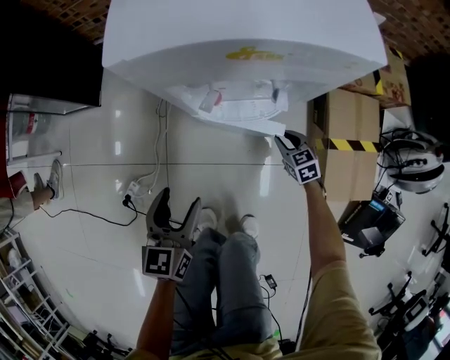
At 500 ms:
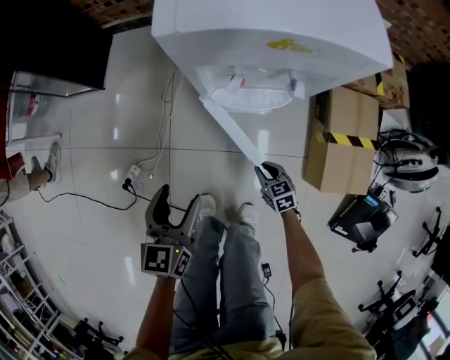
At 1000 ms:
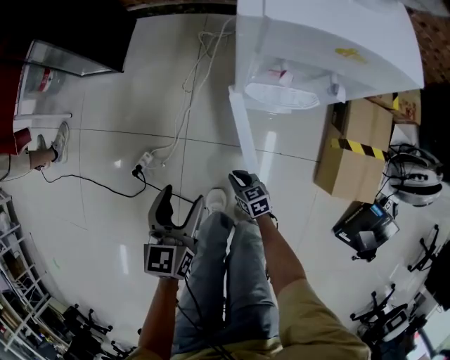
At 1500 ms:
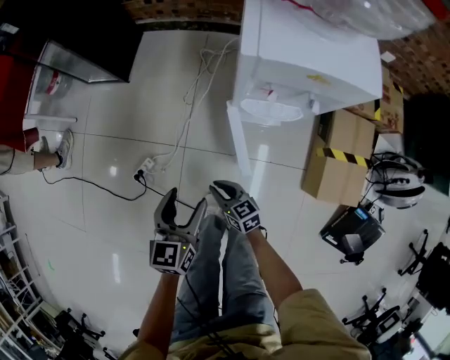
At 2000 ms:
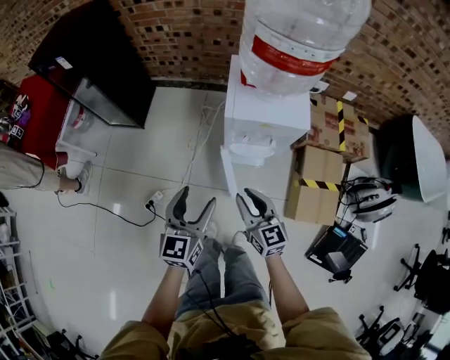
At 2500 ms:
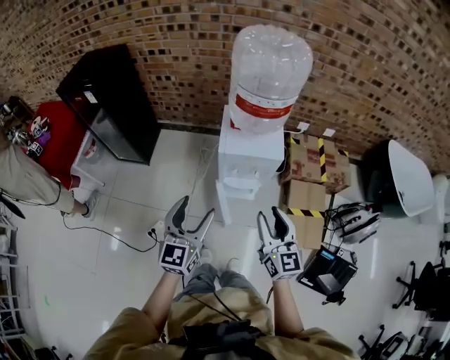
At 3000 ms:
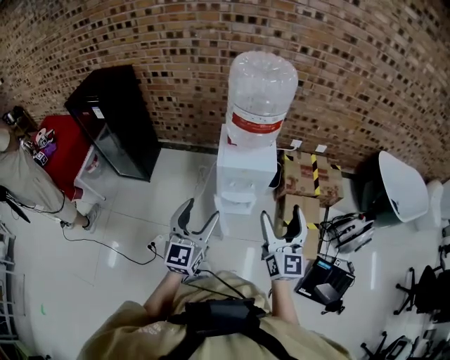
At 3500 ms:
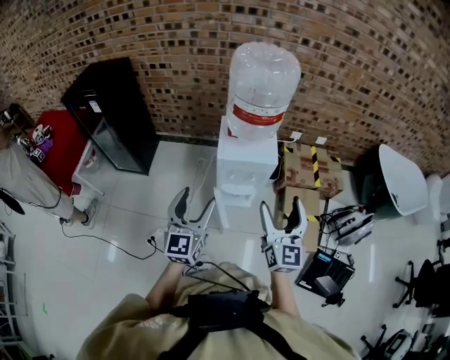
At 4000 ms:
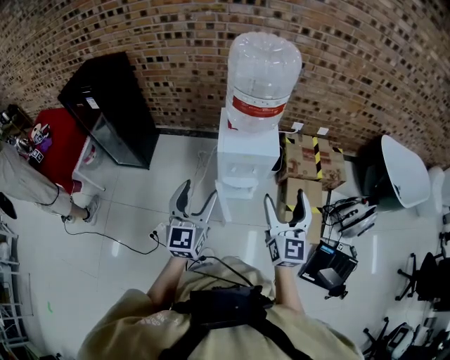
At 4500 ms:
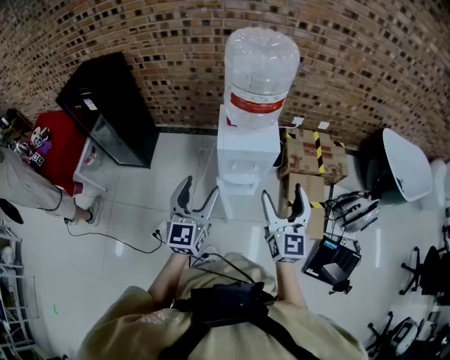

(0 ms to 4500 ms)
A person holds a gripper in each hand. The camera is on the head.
0 ms - 2000 ms: The right gripper is displaced upward and to the left by some 50 cm, and points its fingers roughly 30 degrees further upward, while the left gripper shifts approximately 30 cm upward.
2000 ms - 4500 ms: The right gripper travels upward and to the right by some 30 cm, turns by about 40 degrees, and opens. Meanwhile the left gripper moves upward, approximately 20 cm.

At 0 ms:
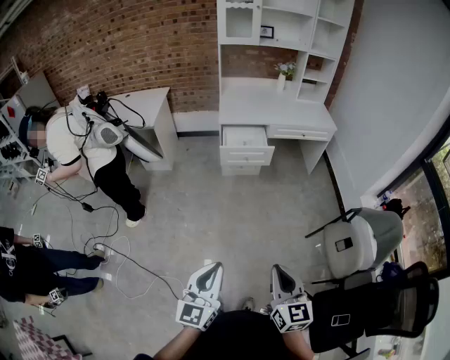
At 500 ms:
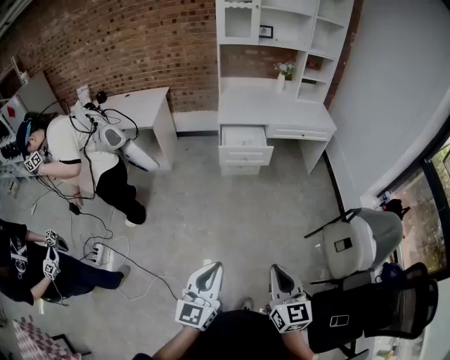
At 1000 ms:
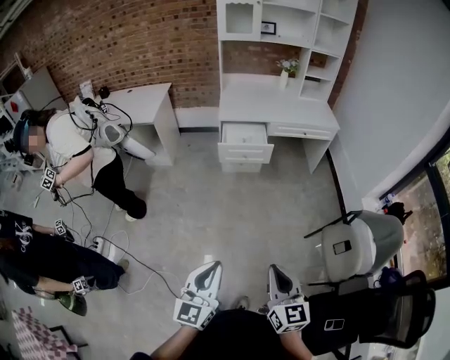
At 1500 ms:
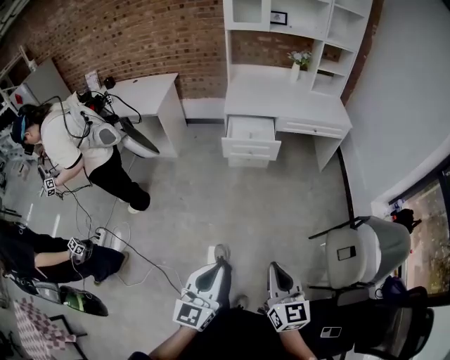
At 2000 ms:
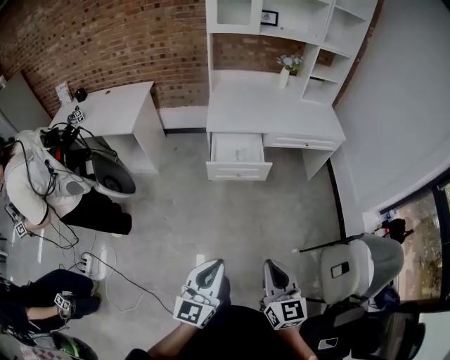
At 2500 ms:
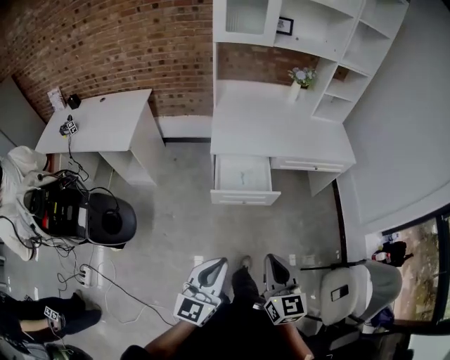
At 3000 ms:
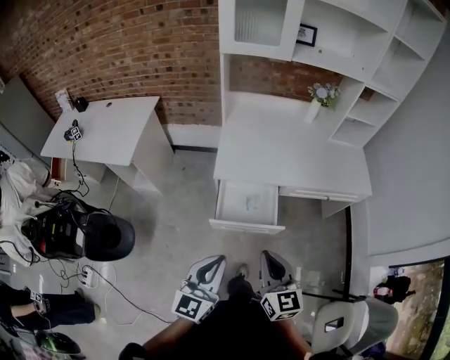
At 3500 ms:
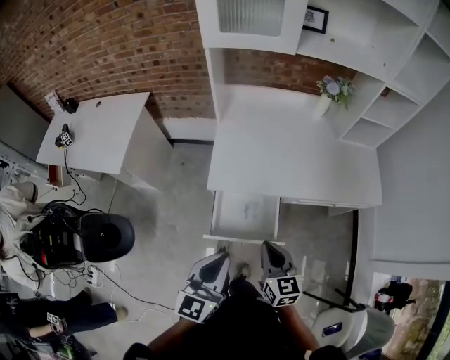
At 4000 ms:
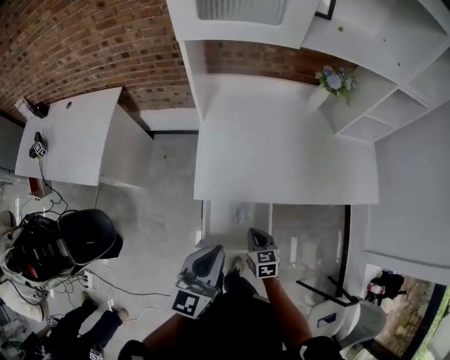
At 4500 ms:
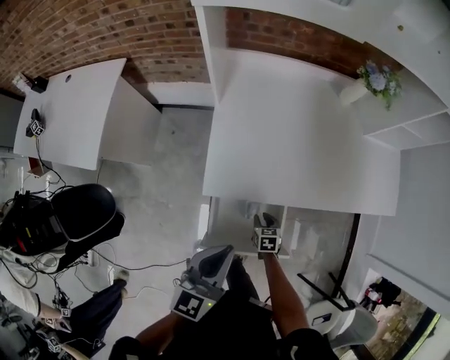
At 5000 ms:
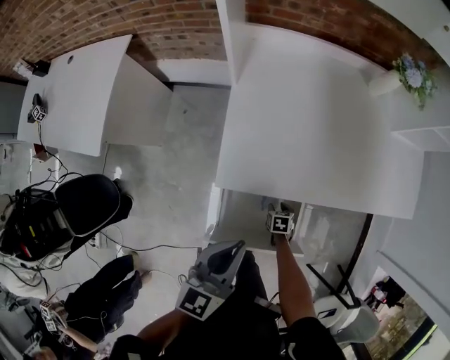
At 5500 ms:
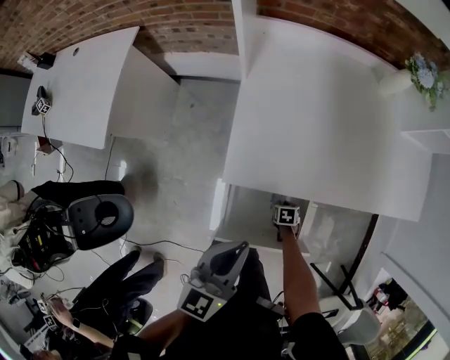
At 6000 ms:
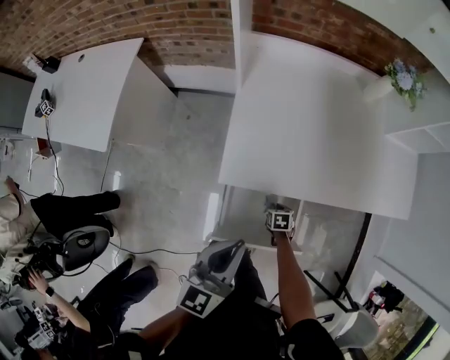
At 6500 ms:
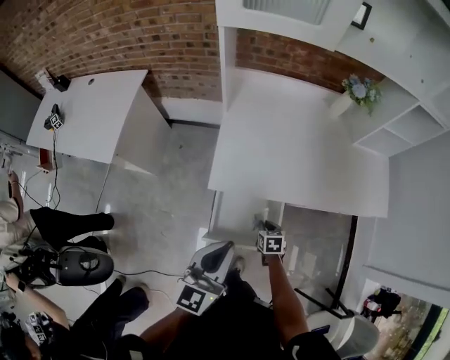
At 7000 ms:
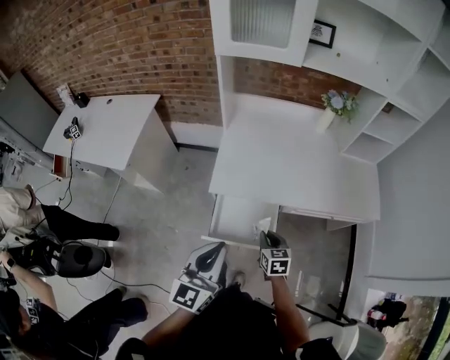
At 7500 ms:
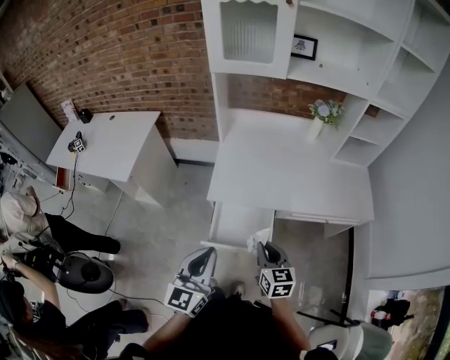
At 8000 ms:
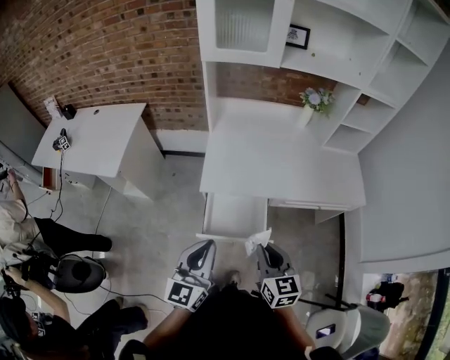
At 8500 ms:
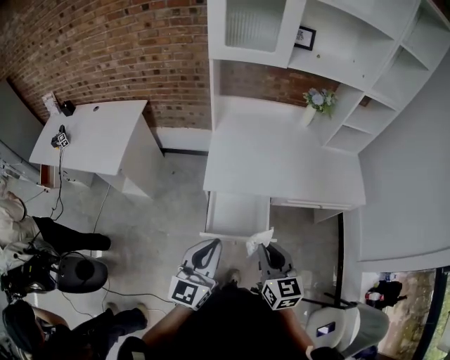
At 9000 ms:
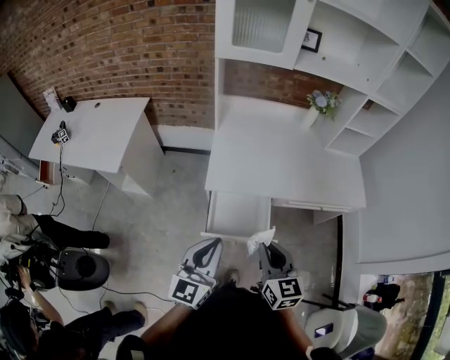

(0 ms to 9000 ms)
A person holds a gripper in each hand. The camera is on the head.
0 ms - 2000 ms: Both grippers travel together forward, some 30 cm.
2000 ms - 4500 ms: The pair of grippers is taken forward, some 80 cm. The right gripper travels downward by some 50 cm, tips its fingers downward by about 50 degrees, and opens its fingers.
4500 ms - 7000 ms: The right gripper is displaced upward by some 25 cm, and rotates some 20 degrees, while the left gripper shifts by some 20 cm.
7000 ms - 9000 ms: The right gripper shifts roughly 25 cm upward and backward, and turns by approximately 20 degrees. The left gripper ends up roughly 5 cm from where it was.

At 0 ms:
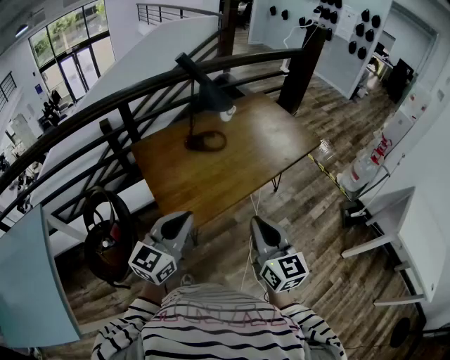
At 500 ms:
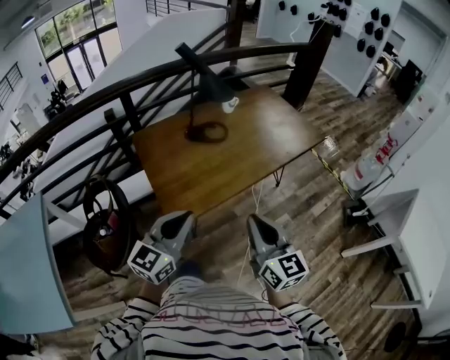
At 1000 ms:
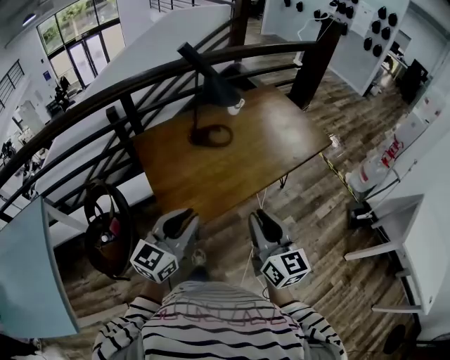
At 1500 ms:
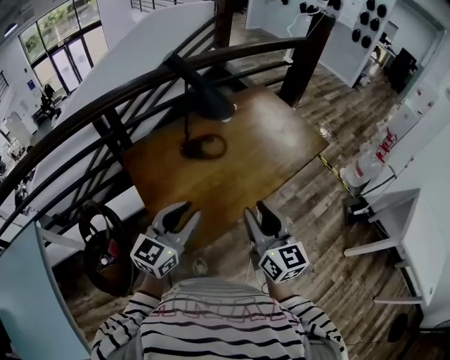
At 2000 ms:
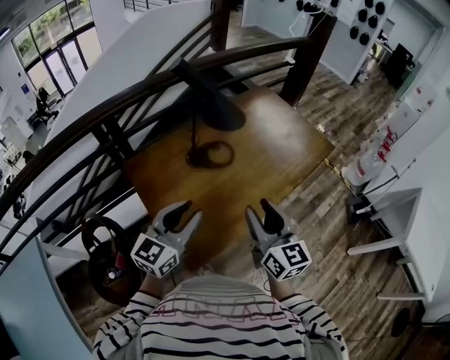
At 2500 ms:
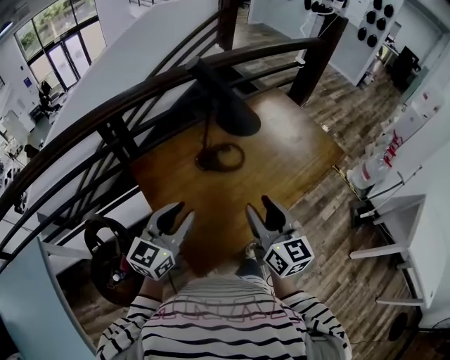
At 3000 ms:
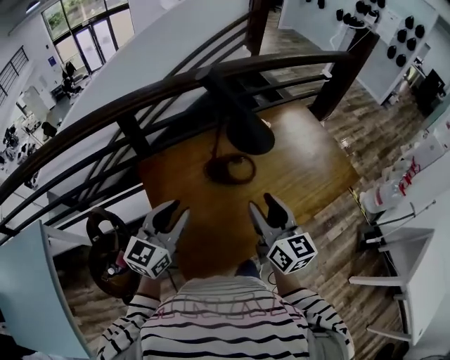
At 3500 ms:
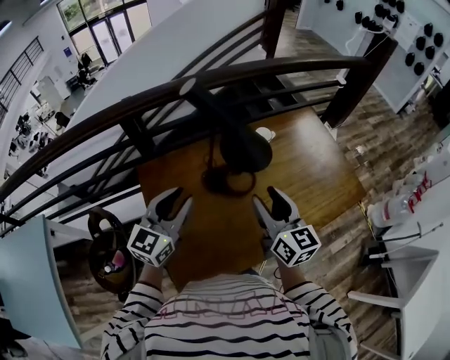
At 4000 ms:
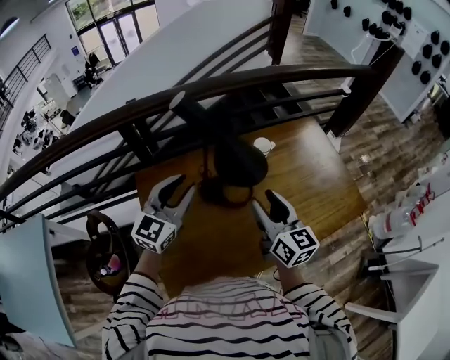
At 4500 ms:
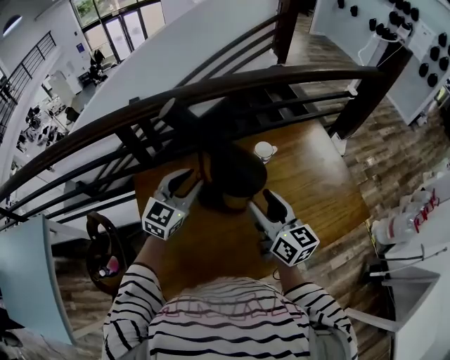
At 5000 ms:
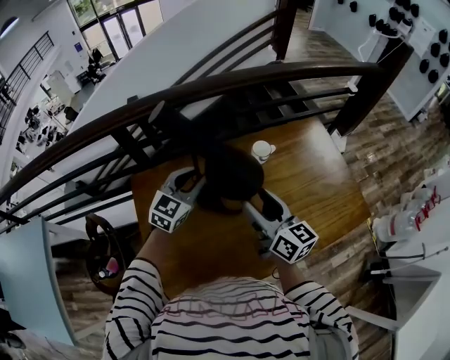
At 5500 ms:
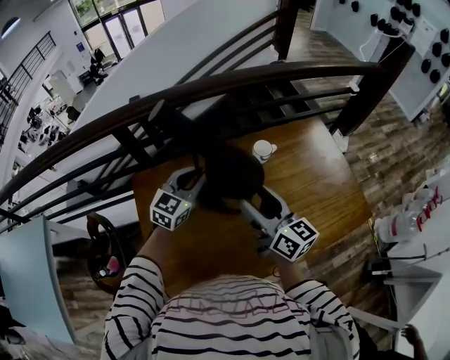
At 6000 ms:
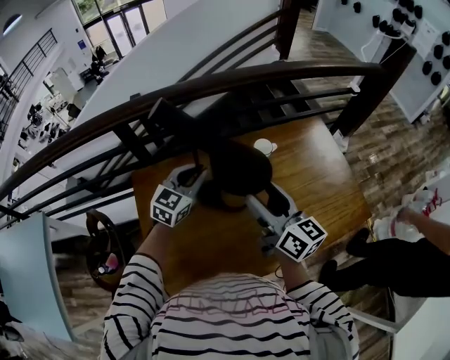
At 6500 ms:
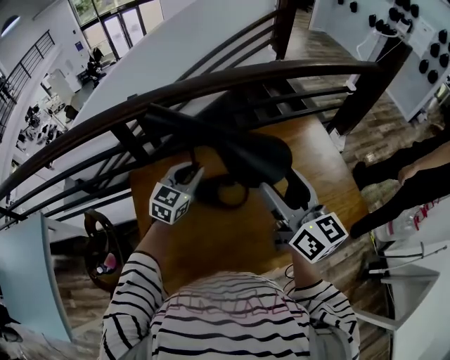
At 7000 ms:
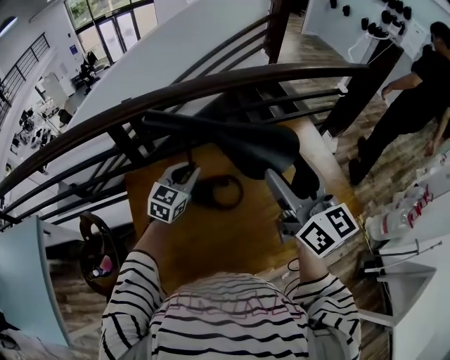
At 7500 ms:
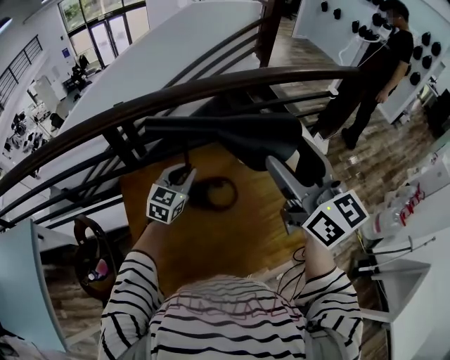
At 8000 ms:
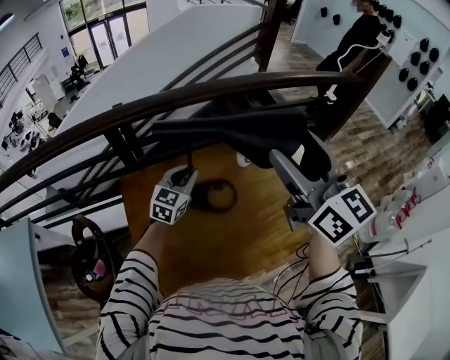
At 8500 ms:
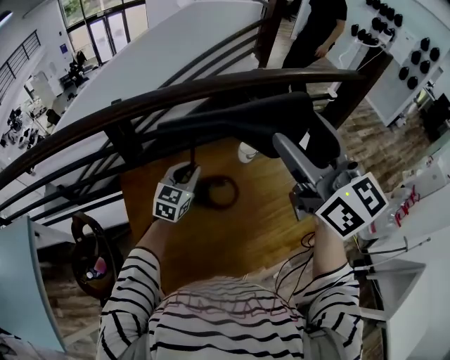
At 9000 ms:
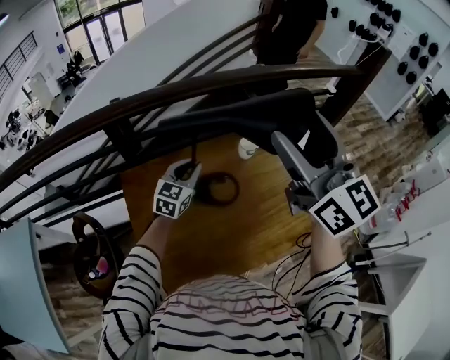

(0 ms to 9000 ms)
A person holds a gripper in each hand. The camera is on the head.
0 ms - 2000 ms: Both grippers move forward, about 25 cm. The left gripper opens up; the right gripper opens its fingers.
2000 ms - 4500 ms: The two grippers go roughly 35 cm forward. The right gripper turns by about 30 degrees. Meanwhile the left gripper swivels about 30 degrees.
4500 ms - 7000 ms: The right gripper heads upward, covering some 15 cm. The left gripper changes place by approximately 5 cm.
7000 ms - 9000 ms: The right gripper is displaced upward by roughly 10 cm.

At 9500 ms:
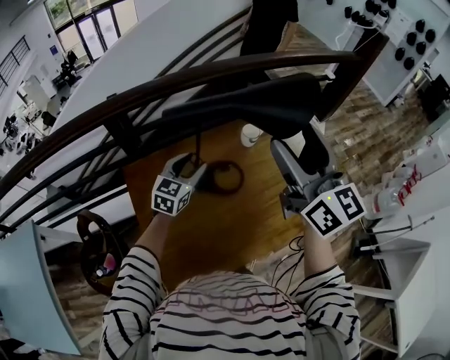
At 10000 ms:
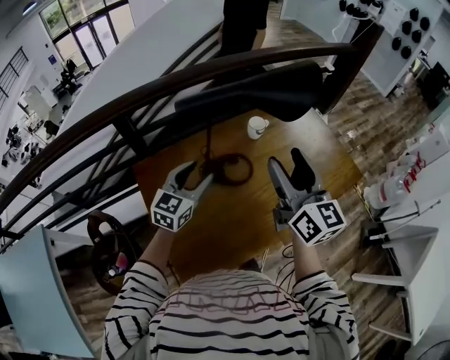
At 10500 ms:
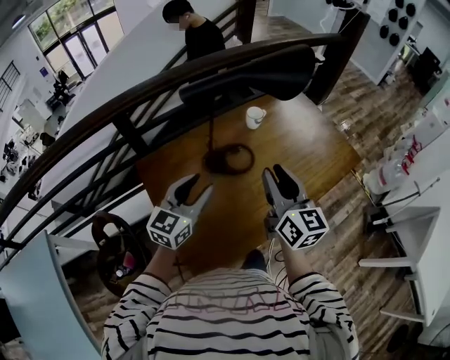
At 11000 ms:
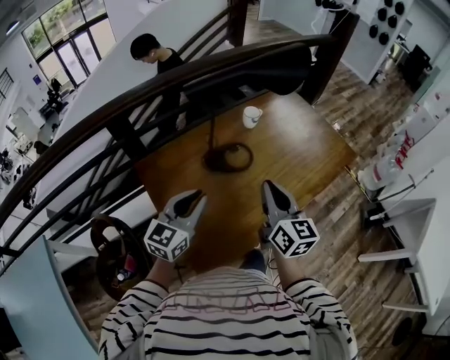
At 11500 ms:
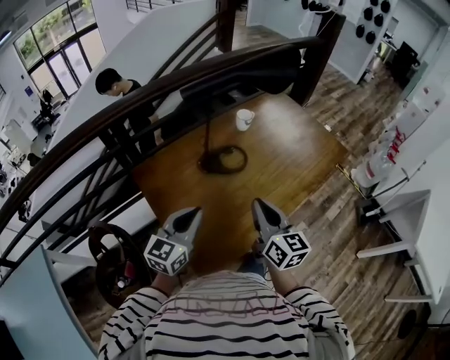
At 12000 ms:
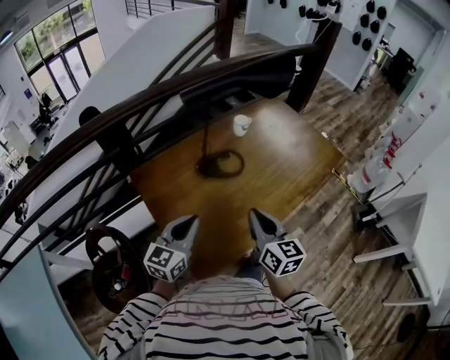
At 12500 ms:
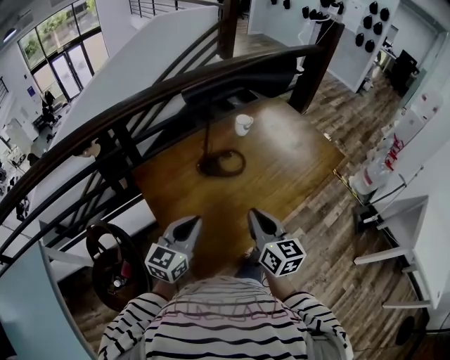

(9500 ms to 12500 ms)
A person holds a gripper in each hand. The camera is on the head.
9500 ms - 11000 ms: The right gripper travels downward and backward by some 30 cm, swivels approximately 20 degrees, and closes its fingers; the left gripper travels backward by some 25 cm, and closes up.
11000 ms - 12500 ms: Both grippers move backward, some 10 cm.
